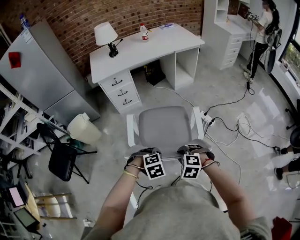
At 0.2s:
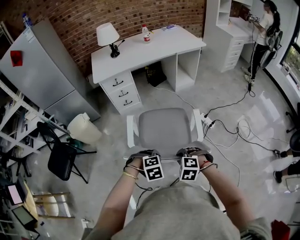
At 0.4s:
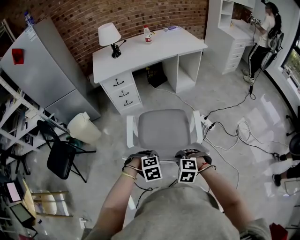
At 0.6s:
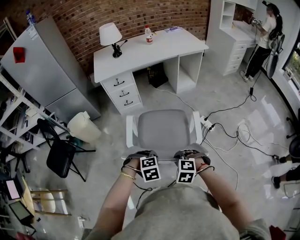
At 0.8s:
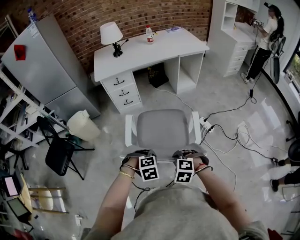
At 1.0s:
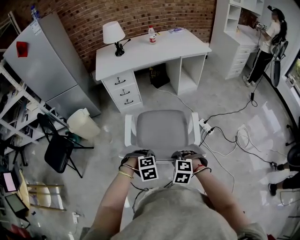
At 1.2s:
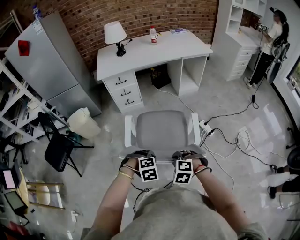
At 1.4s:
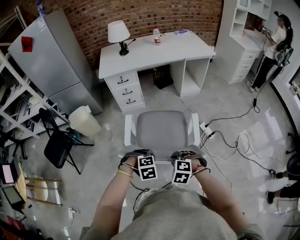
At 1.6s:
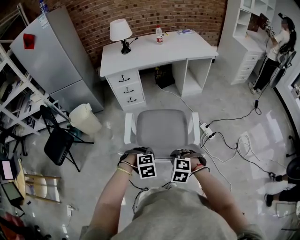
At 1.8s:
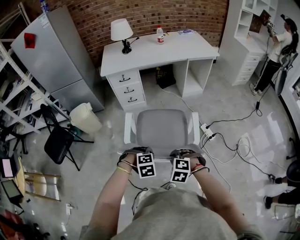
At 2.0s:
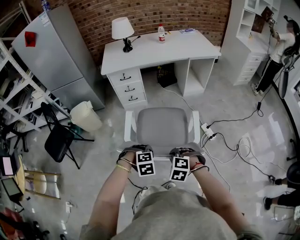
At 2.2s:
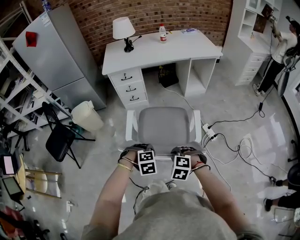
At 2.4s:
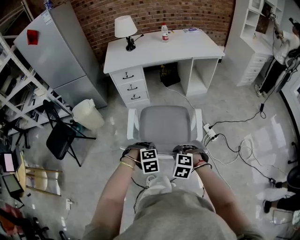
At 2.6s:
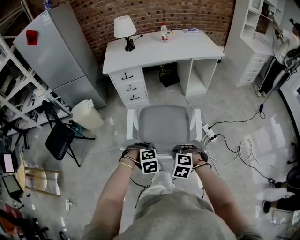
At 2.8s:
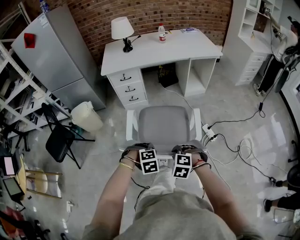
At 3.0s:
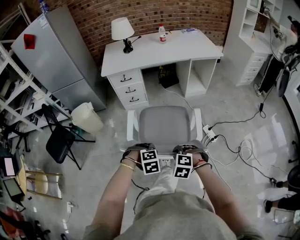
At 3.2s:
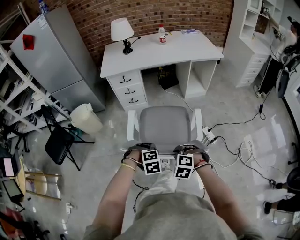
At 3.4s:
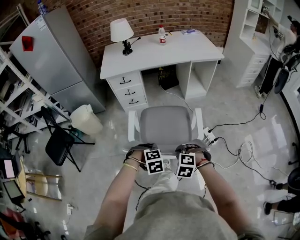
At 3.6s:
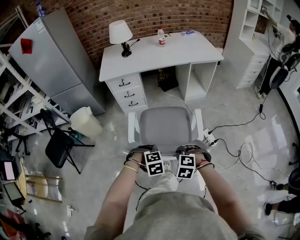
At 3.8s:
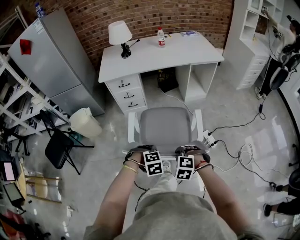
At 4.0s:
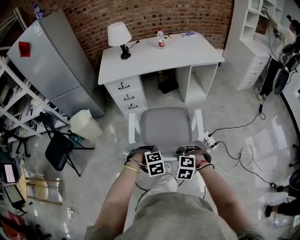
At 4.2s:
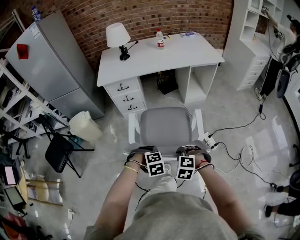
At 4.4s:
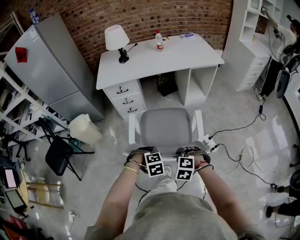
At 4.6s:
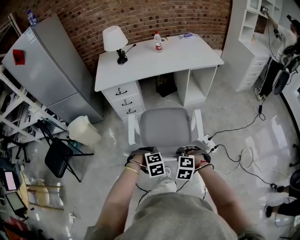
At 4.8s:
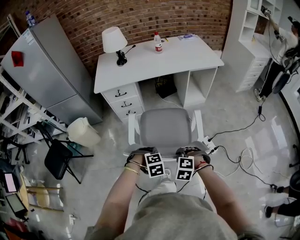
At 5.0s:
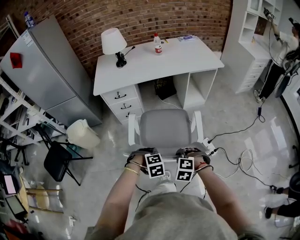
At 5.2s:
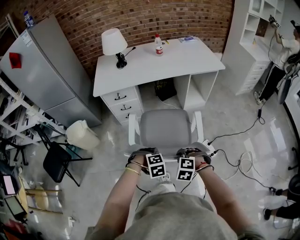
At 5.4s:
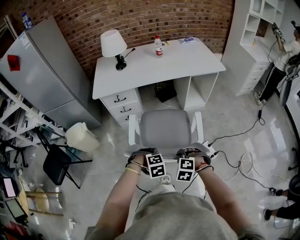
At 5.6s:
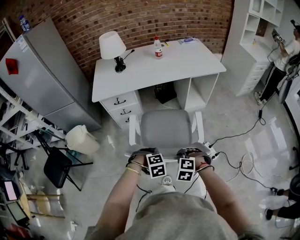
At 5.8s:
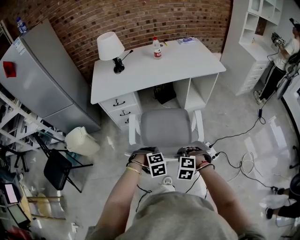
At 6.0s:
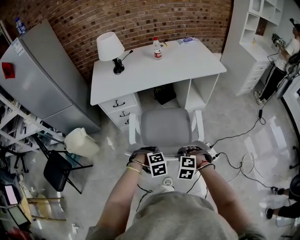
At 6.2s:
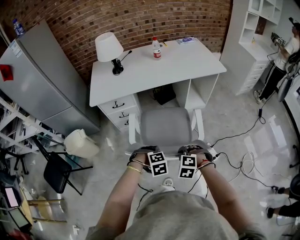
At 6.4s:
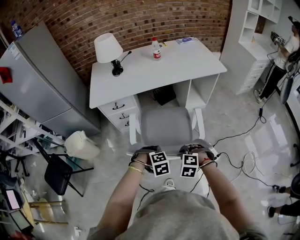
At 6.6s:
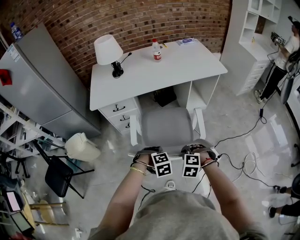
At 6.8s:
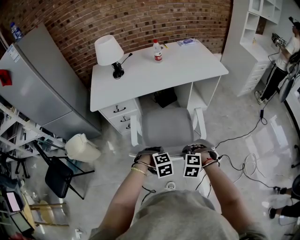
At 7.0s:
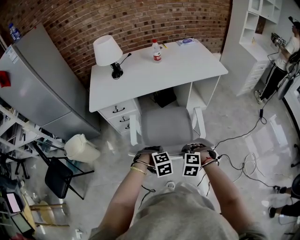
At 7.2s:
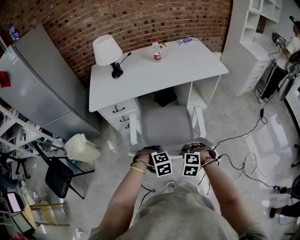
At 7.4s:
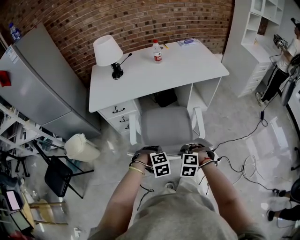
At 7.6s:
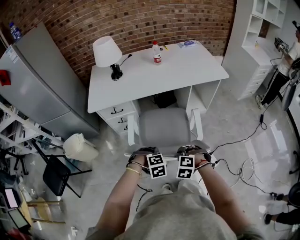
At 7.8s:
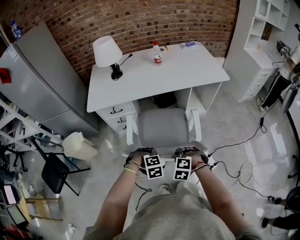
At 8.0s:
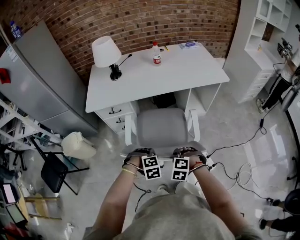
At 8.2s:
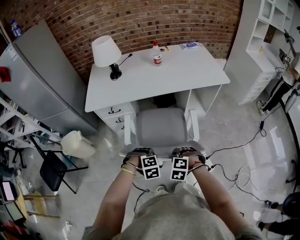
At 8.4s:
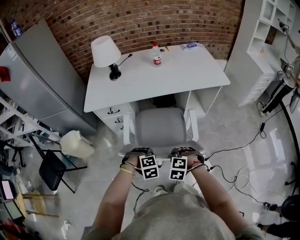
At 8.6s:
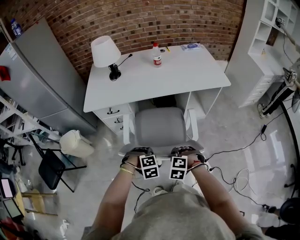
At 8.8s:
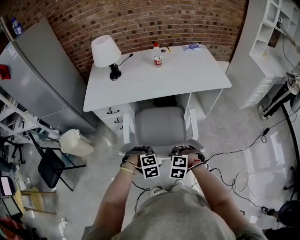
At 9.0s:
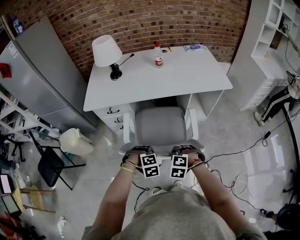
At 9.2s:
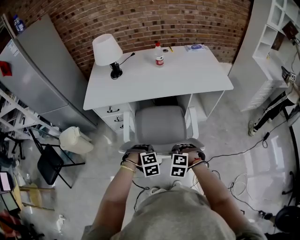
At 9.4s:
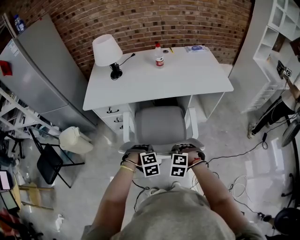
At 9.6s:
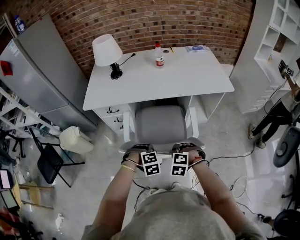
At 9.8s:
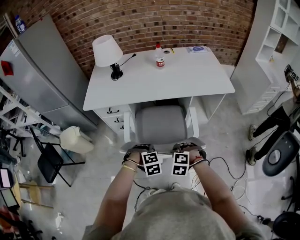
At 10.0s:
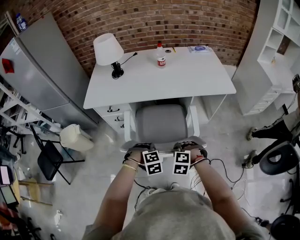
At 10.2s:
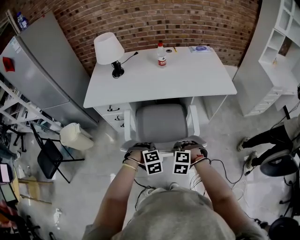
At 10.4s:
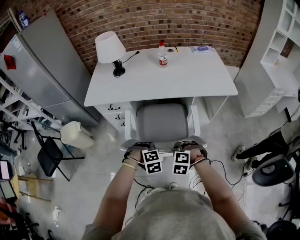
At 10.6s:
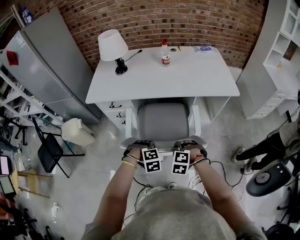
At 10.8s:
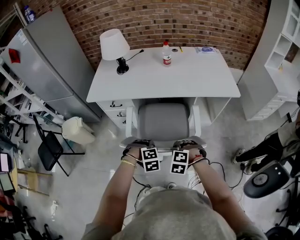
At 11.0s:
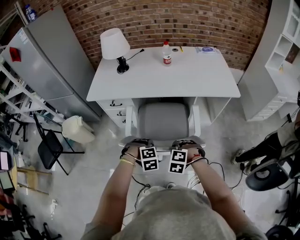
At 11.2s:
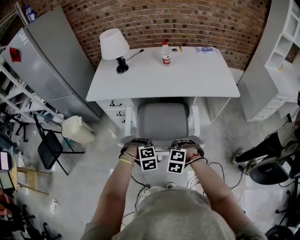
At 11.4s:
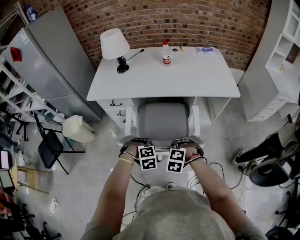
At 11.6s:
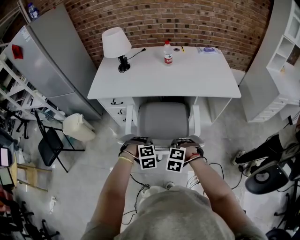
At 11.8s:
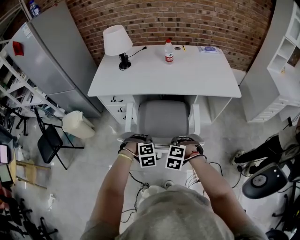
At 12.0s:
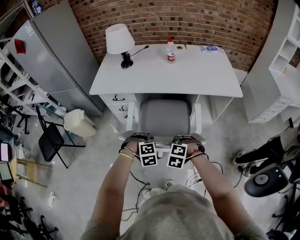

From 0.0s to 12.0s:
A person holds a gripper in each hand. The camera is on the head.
From 0.0s to 1.6s: There are only small adjustments of the grippers.
From 1.6s to 3.0s: The grippers both shift forward by roughly 5 cm.
From 3.0s to 4.4s: The left gripper moves about 10 cm, while the right gripper moves approximately 10 cm.
From 4.4s to 6.0s: The right gripper ends up some 15 cm from where it was. Meanwhile the left gripper changes place by approximately 15 cm.
From 6.0s to 7.6s: The right gripper shifts by about 10 cm. The left gripper changes place by about 10 cm.
From 7.6s to 9.0s: Both grippers travel together forward, approximately 5 cm.
From 9.0s to 10.4s: The left gripper shifts by roughly 5 cm, while the right gripper moves roughly 5 cm.
From 10.4s to 12.0s: The grippers move only a little.

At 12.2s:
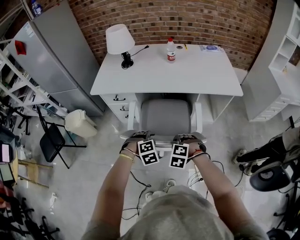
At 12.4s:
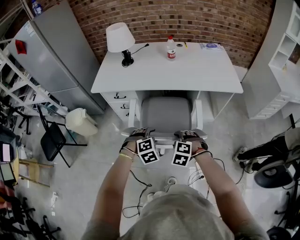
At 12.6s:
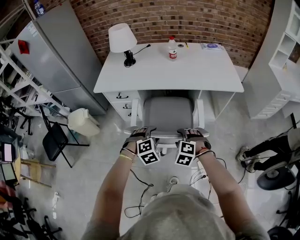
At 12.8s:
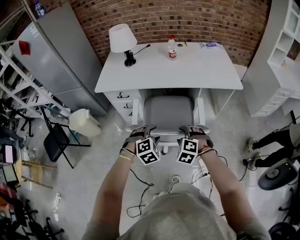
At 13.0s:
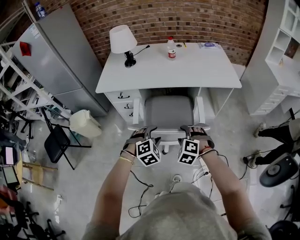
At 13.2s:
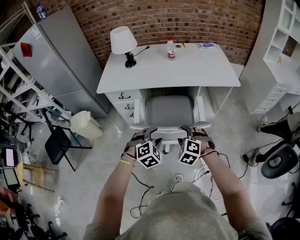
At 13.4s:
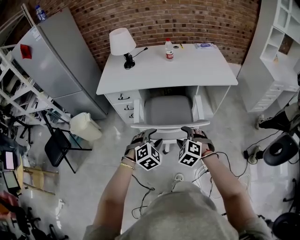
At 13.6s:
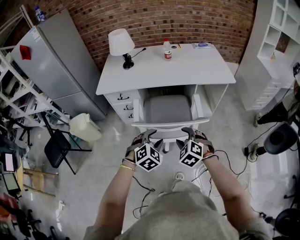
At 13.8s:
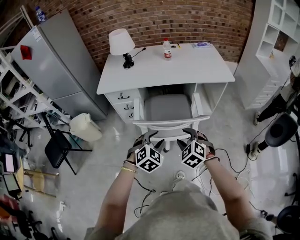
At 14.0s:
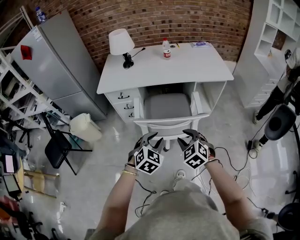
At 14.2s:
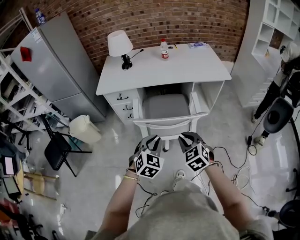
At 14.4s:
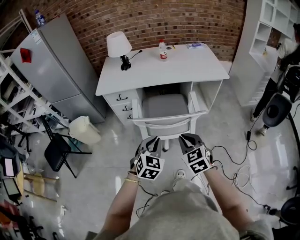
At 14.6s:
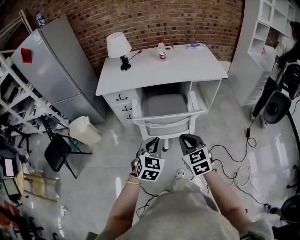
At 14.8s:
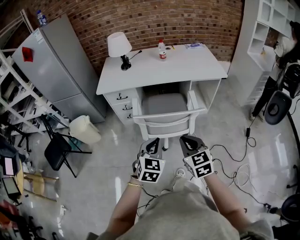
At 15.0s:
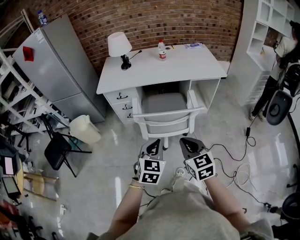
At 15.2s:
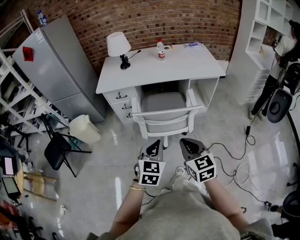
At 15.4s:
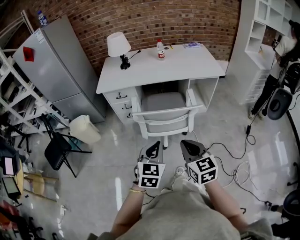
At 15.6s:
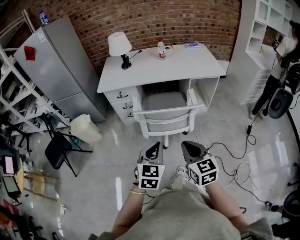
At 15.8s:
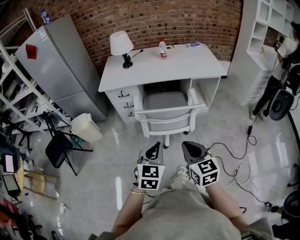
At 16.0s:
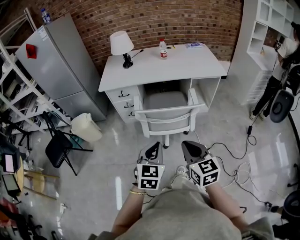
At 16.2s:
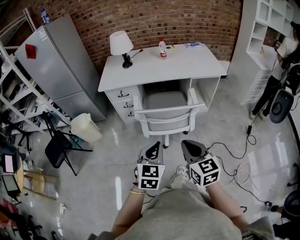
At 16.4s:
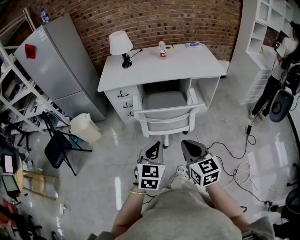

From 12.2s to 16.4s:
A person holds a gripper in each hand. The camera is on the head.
From 12.2s to 13.6s: Both grippers move upward and backward, some 15 cm. The right gripper changes its angle by some 30 degrees, and opens up; the left gripper swivels roughly 30 degrees.
From 13.6s to 15.0s: The grippers both shift backward and upward by some 15 cm. The right gripper swivels approximately 50 degrees, and closes, while the left gripper swivels roughly 30 degrees, and closes up.
From 15.0s to 16.4s: The right gripper moves roughly 5 cm.

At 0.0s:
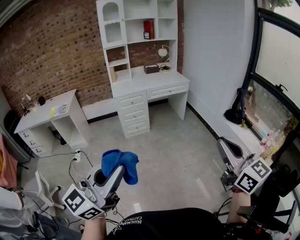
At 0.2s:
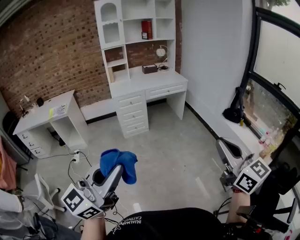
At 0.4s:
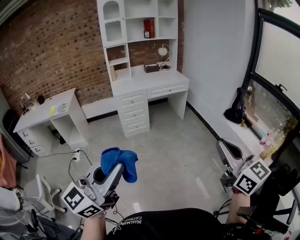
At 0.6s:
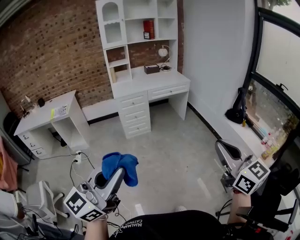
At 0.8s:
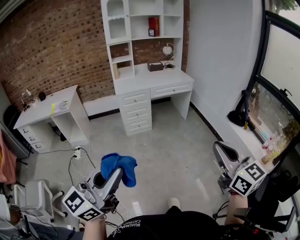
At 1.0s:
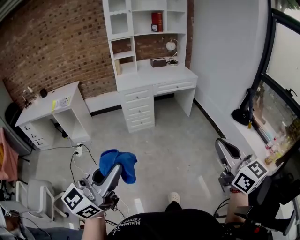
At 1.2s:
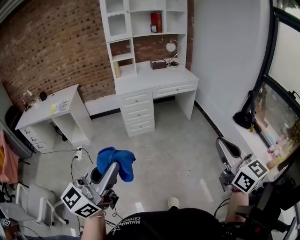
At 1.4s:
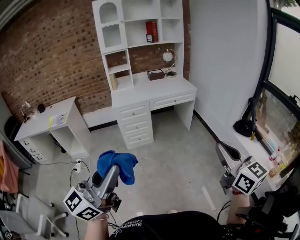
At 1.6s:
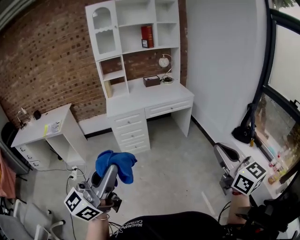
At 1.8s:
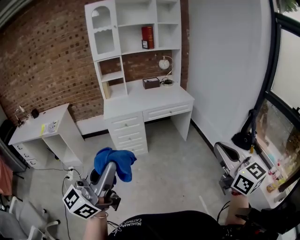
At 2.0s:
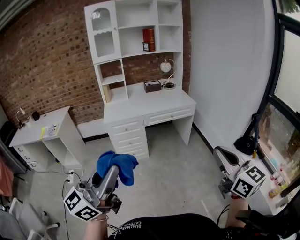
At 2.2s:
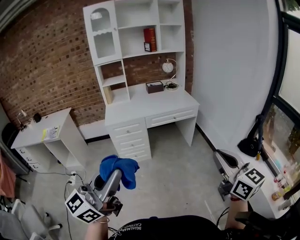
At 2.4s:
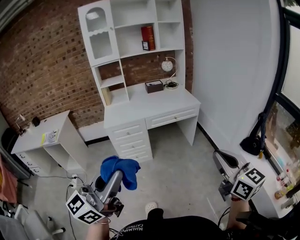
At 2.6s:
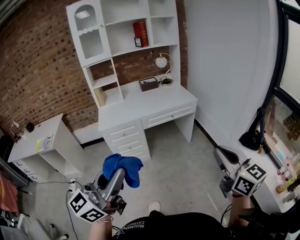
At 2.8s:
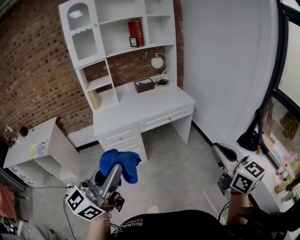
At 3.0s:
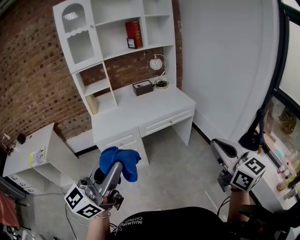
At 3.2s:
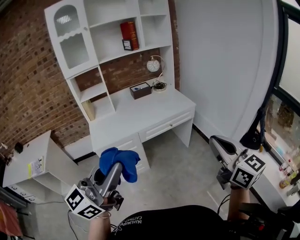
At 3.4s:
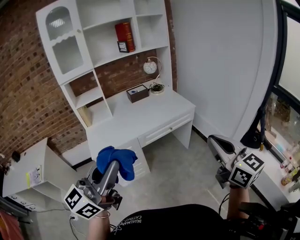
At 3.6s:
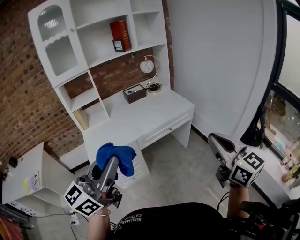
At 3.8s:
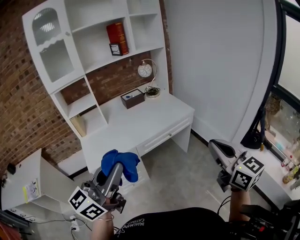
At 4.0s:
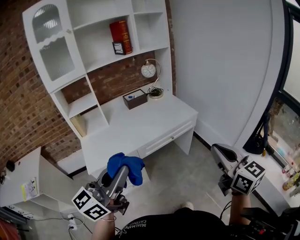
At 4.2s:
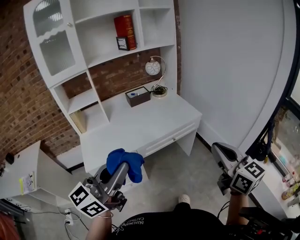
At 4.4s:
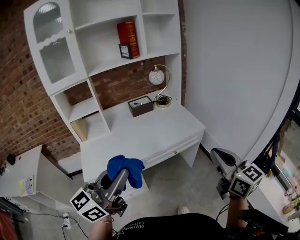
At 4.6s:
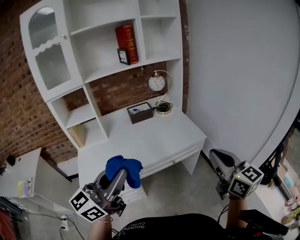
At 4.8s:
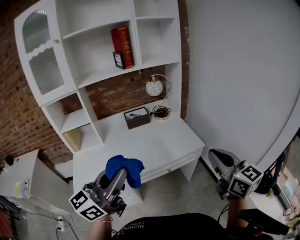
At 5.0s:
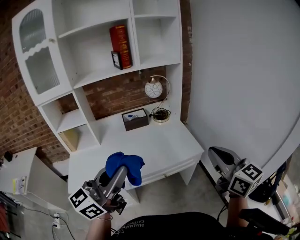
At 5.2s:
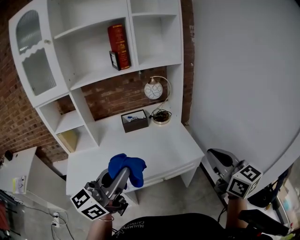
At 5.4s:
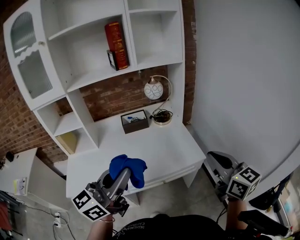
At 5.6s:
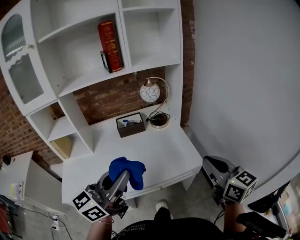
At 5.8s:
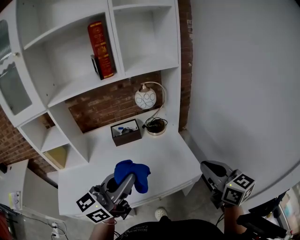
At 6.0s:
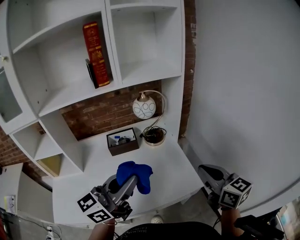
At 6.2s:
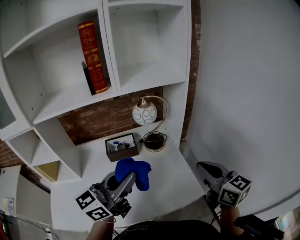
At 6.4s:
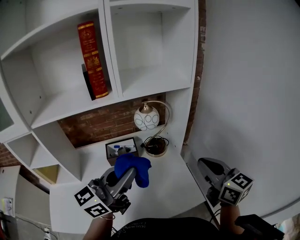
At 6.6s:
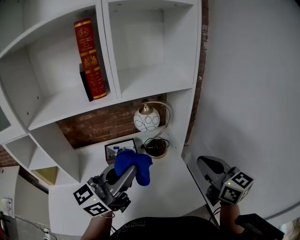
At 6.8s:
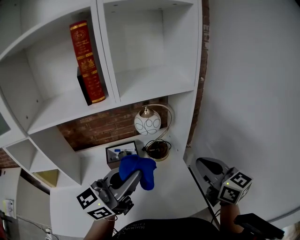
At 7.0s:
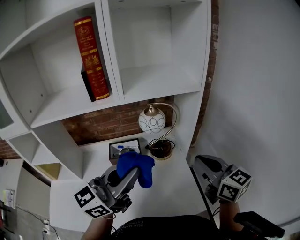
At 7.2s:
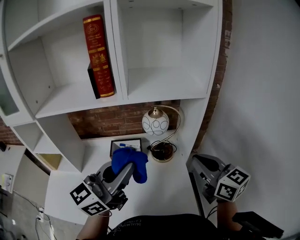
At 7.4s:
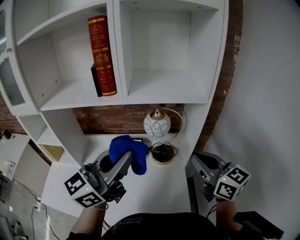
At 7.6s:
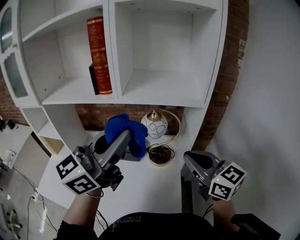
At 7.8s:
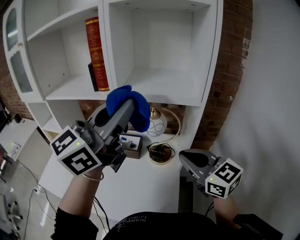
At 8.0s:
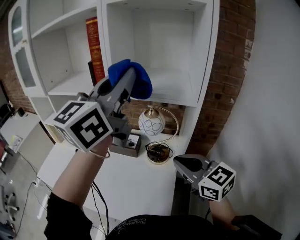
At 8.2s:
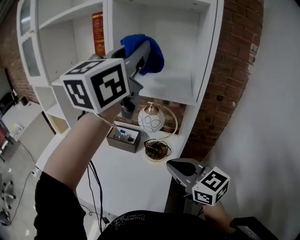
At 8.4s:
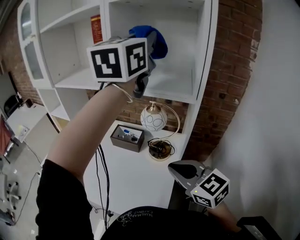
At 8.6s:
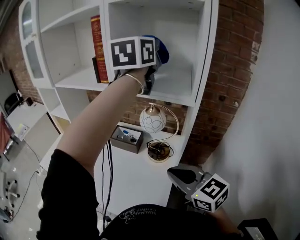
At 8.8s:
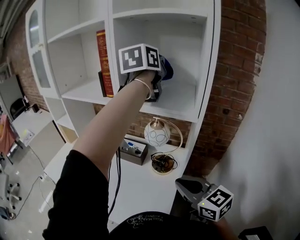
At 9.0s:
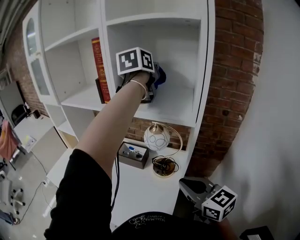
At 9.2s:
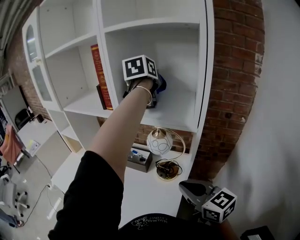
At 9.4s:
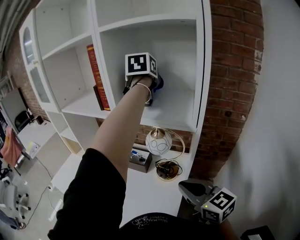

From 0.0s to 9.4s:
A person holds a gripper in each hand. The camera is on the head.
From 0.0s to 1.6s: The grippers both shift forward by about 25 cm.
From 1.6s to 3.2s: The two grippers go about 35 cm forward.
From 3.2s to 4.8s: The two grippers go approximately 40 cm forward.
From 4.8s to 6.2s: Both grippers travel together forward, roughly 35 cm.
From 6.2s to 7.8s: The right gripper moves approximately 15 cm, and rotates approximately 40 degrees; the left gripper moves upward, some 20 cm, and swivels approximately 30 degrees.
From 7.8s to 9.4s: The left gripper moves roughly 30 cm, and points its fingers roughly 40 degrees further downward.
